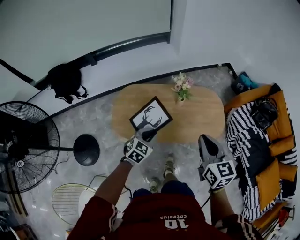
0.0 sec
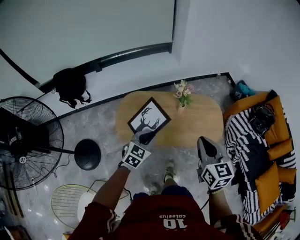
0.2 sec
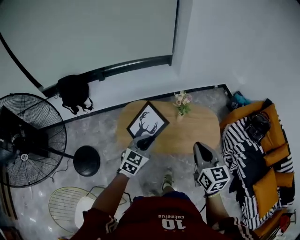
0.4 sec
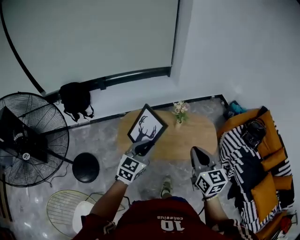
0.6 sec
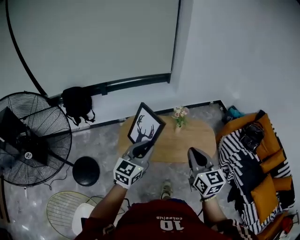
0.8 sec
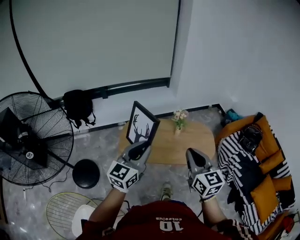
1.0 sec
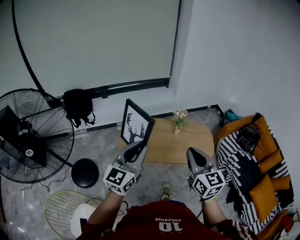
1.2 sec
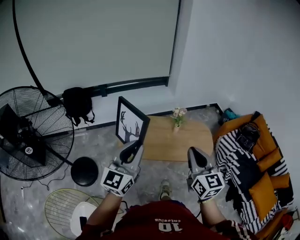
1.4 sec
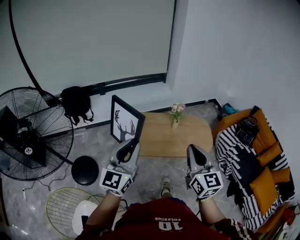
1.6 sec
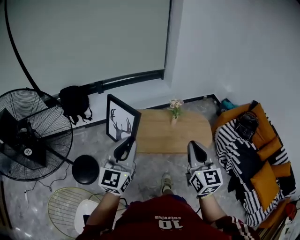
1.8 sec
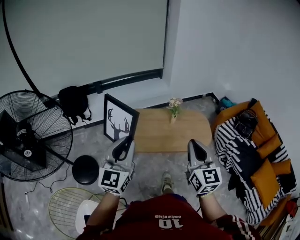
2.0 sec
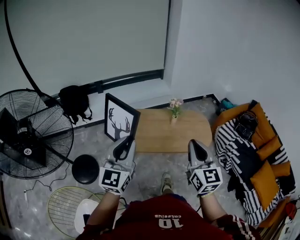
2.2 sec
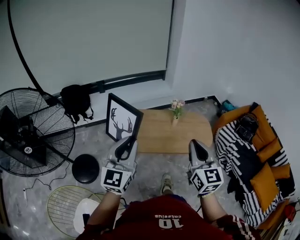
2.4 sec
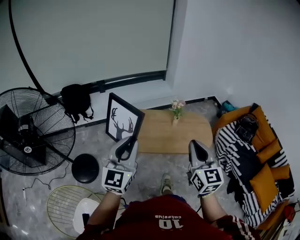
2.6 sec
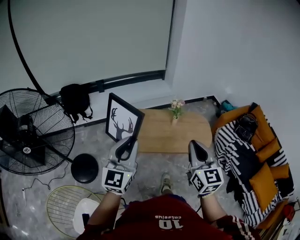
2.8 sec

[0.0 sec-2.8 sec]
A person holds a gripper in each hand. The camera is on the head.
0.0 sec to 1.4 sec: The left gripper goes about 40 cm upward and backward, and points its fingers about 50 degrees further upward. The right gripper moves backward, upward and to the left, about 25 cm.
1.4 sec to 2.8 sec: The grippers stay close to where they were, moving slightly.

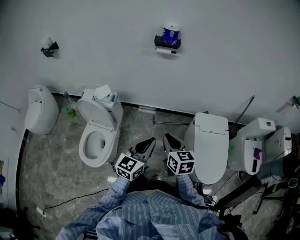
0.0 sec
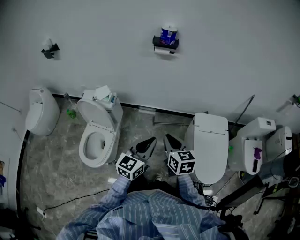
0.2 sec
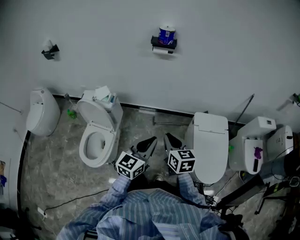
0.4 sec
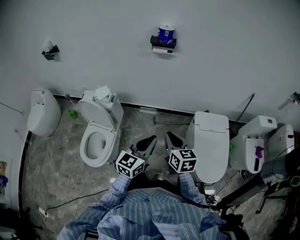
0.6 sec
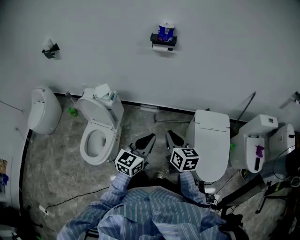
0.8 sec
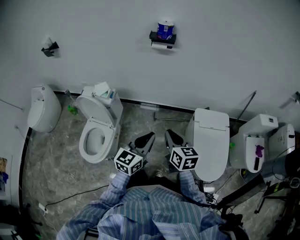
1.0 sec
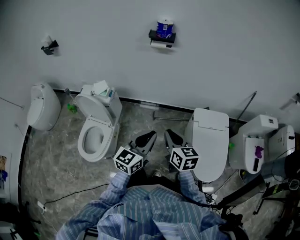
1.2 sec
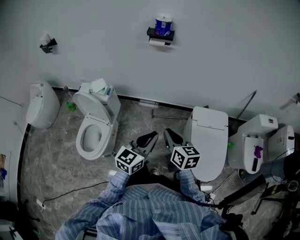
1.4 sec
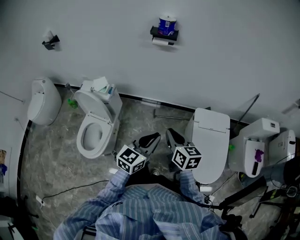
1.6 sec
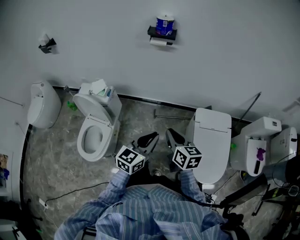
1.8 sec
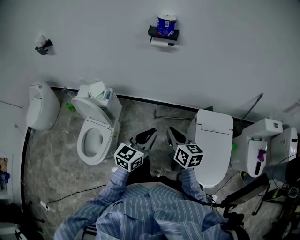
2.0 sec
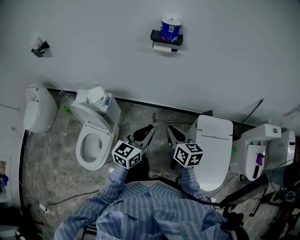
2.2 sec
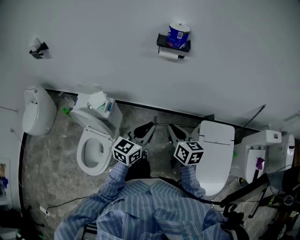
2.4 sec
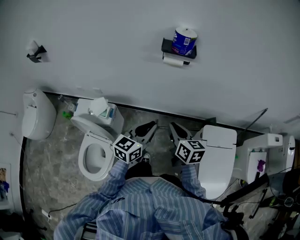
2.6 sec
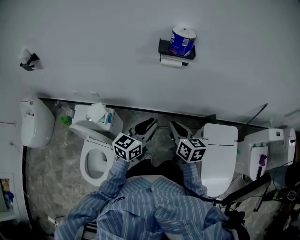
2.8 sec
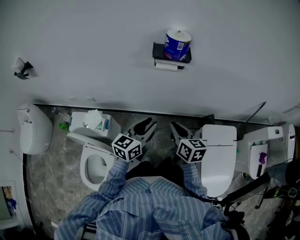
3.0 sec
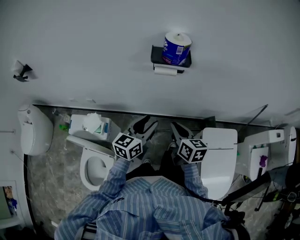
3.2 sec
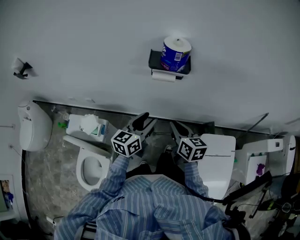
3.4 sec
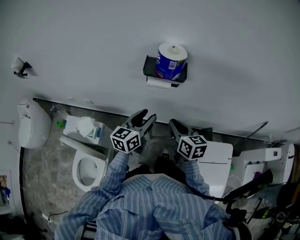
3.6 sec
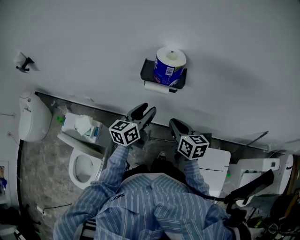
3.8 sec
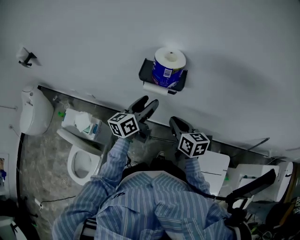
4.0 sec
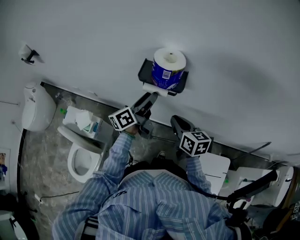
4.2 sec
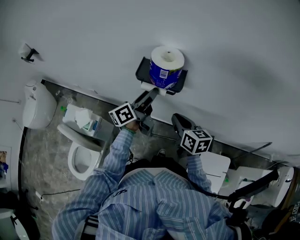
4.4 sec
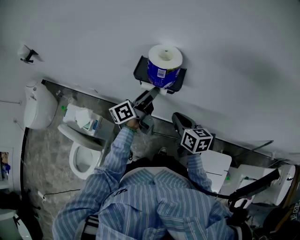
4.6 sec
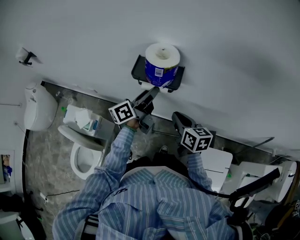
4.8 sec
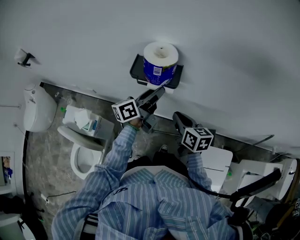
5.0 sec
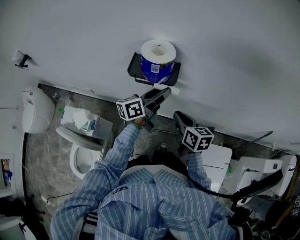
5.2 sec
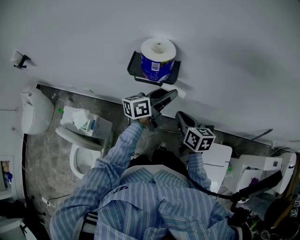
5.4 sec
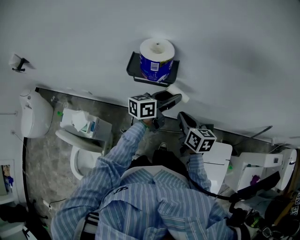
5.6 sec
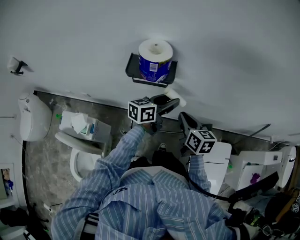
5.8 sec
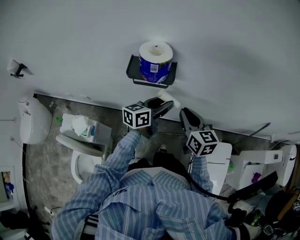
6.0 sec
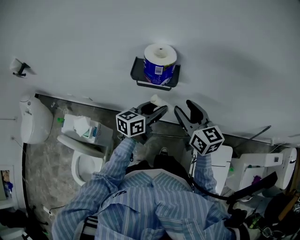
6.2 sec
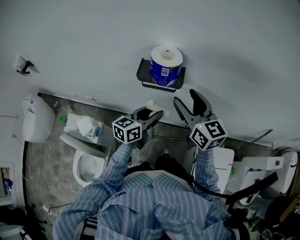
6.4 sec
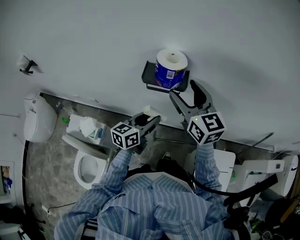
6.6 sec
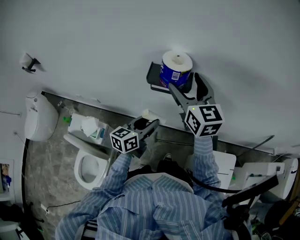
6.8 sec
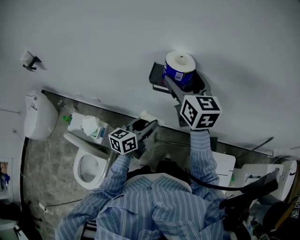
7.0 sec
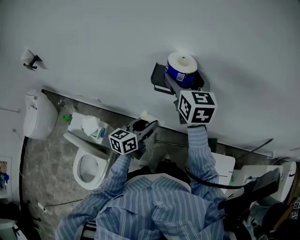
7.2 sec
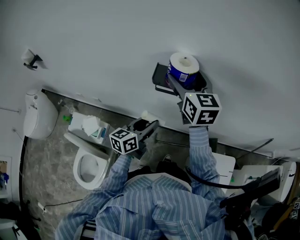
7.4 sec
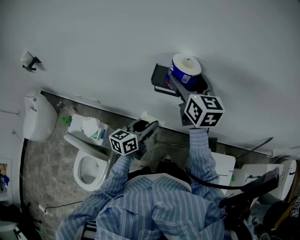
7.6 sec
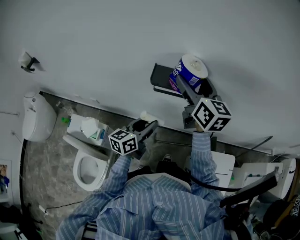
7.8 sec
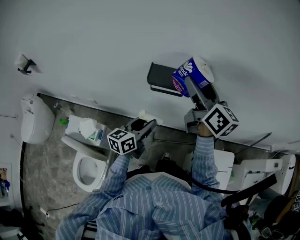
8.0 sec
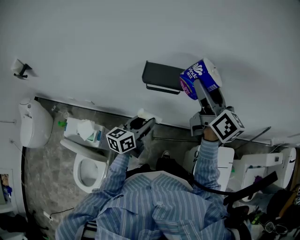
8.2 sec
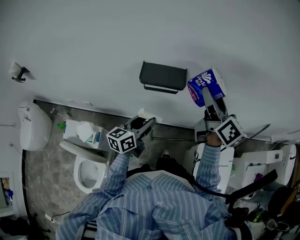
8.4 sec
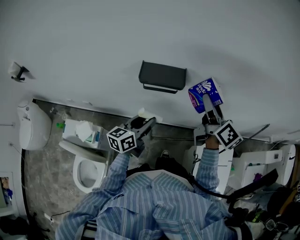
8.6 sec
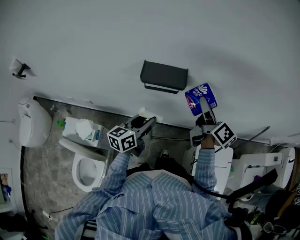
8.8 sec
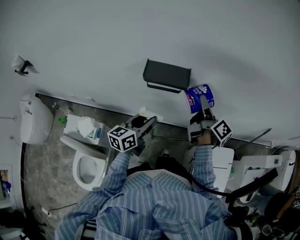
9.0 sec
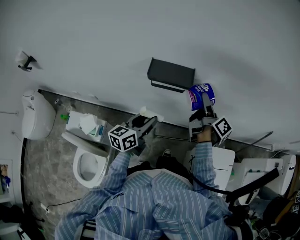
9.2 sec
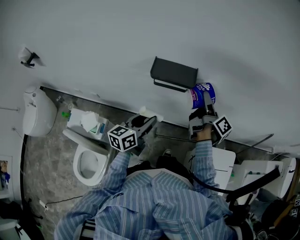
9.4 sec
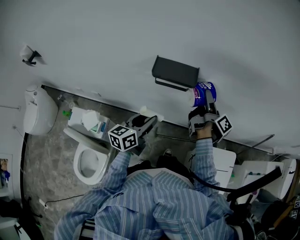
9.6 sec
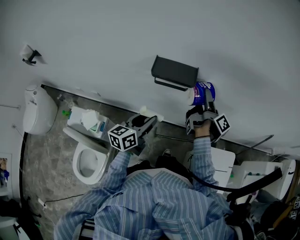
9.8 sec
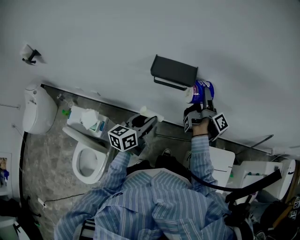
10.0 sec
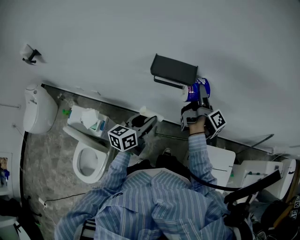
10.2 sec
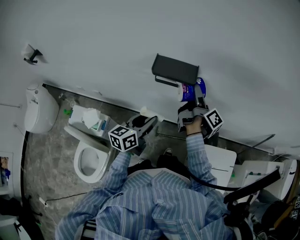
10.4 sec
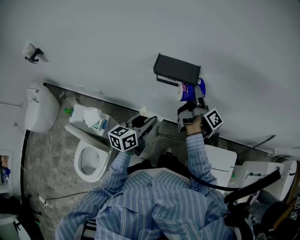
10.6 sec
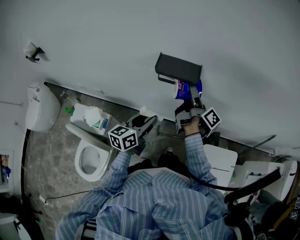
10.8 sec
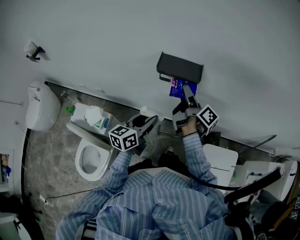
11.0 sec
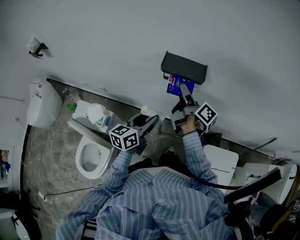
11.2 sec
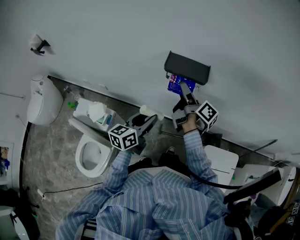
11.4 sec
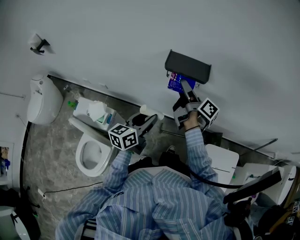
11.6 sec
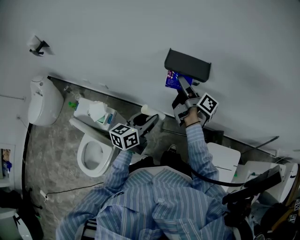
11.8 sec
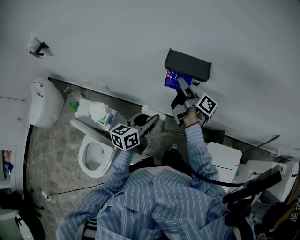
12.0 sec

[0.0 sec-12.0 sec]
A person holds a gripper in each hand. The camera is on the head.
0.0 sec to 1.6 sec: Both grippers move to the right, about 10 cm.
1.6 sec to 3.0 sec: The left gripper moves forward and to the left, some 35 cm, and opens; the right gripper travels forward by roughly 30 cm.
3.0 sec to 4.4 sec: The right gripper heads forward and to the right, covering roughly 20 cm. Meanwhile the left gripper shifts some 25 cm forward, swivels about 40 degrees, and opens.
4.4 sec to 6.0 sec: The left gripper heads to the right, covering approximately 10 cm, and rotates roughly 40 degrees; the right gripper shifts by roughly 5 cm.
6.0 sec to 7.6 sec: The left gripper shifts approximately 15 cm to the left and backward, while the right gripper travels upward, to the left and forward by roughly 25 cm, and opens its fingers.
7.6 sec to 9.0 sec: The right gripper travels to the right and downward by about 20 cm, and rolls clockwise, seen from behind, by approximately 60 degrees.
9.0 sec to 10.4 sec: The right gripper is displaced to the left by about 5 cm.
10.4 sec to 12.0 sec: The right gripper is displaced to the left by roughly 10 cm, and swivels roughly 20 degrees.

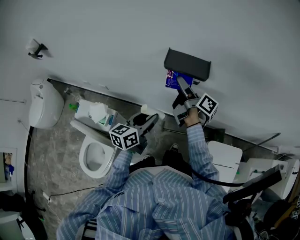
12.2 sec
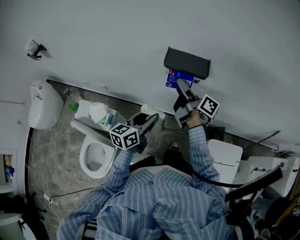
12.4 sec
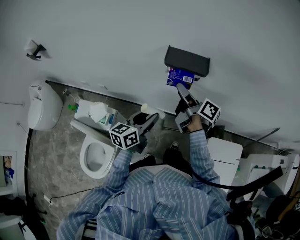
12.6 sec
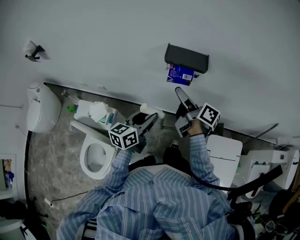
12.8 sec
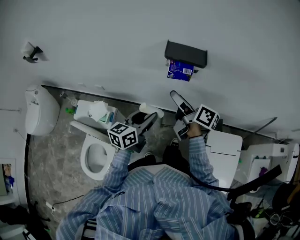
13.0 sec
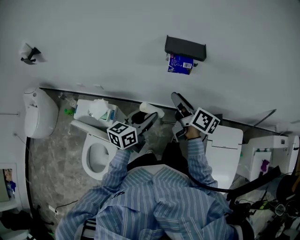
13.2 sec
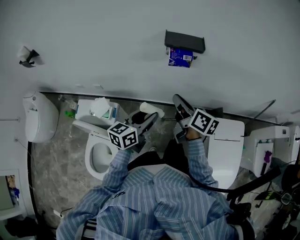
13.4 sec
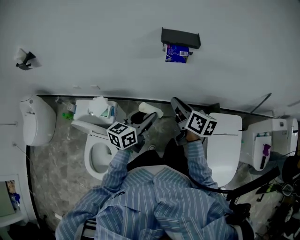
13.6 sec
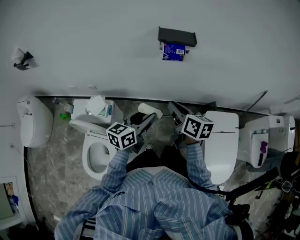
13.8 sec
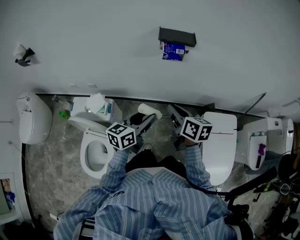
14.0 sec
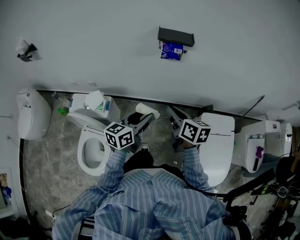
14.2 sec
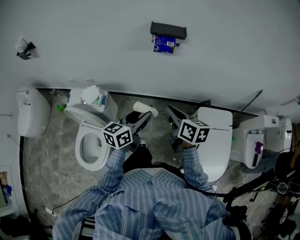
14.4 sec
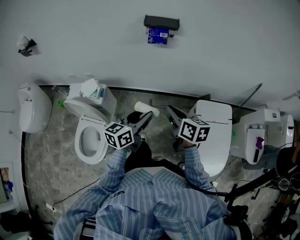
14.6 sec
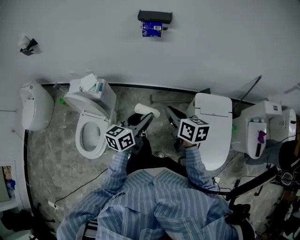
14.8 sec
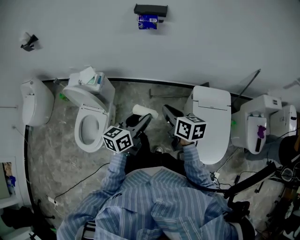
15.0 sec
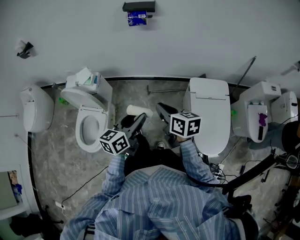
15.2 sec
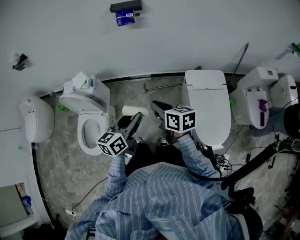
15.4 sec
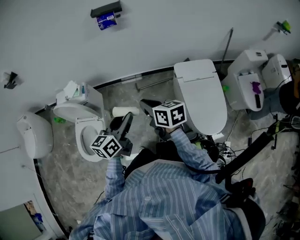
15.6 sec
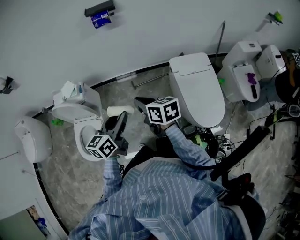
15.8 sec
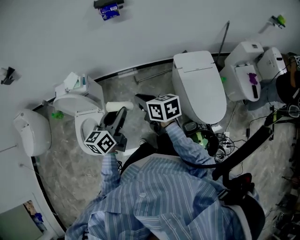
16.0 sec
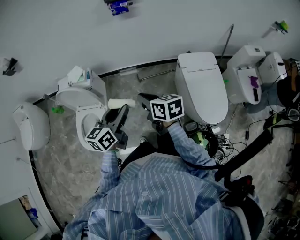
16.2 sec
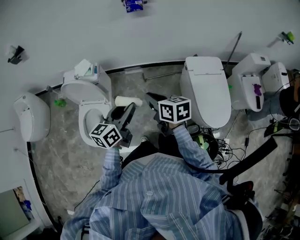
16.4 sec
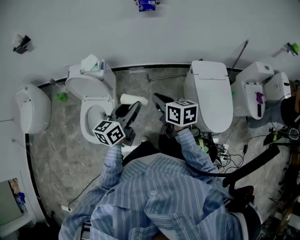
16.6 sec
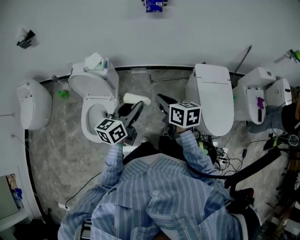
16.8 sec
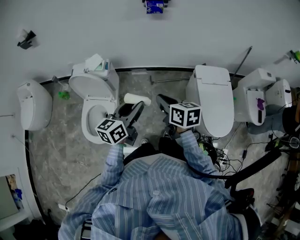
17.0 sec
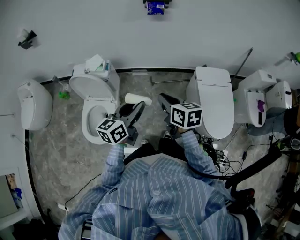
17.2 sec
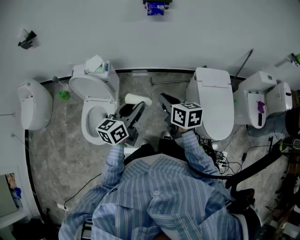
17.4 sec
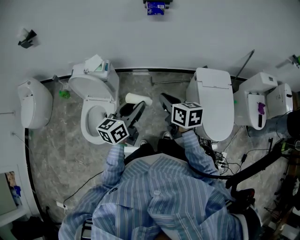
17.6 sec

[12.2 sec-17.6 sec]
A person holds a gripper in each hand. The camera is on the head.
12.2 sec to 13.6 sec: The right gripper heads backward, covering roughly 20 cm, turns by some 40 degrees, and closes up; the left gripper shifts approximately 15 cm backward.
13.6 sec to 15.0 sec: The two grippers go approximately 25 cm backward and to the right.
15.0 sec to 16.2 sec: The two grippers go approximately 15 cm to the left and backward.
16.2 sec to 17.6 sec: There are only small adjustments of the grippers.

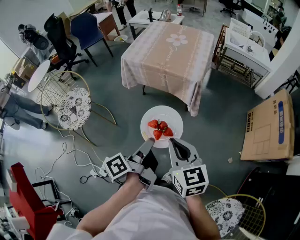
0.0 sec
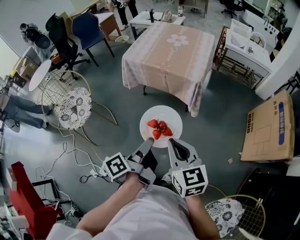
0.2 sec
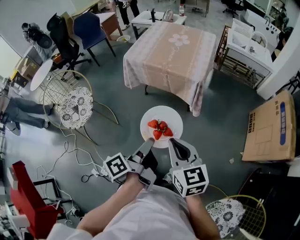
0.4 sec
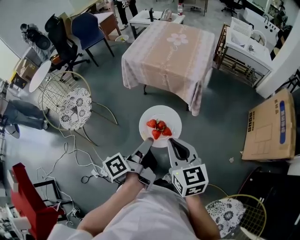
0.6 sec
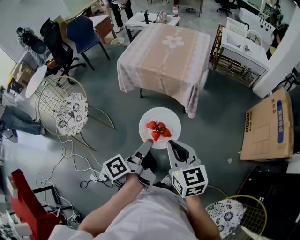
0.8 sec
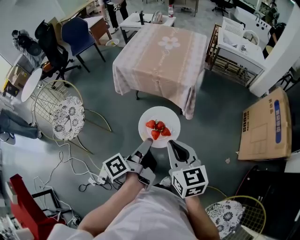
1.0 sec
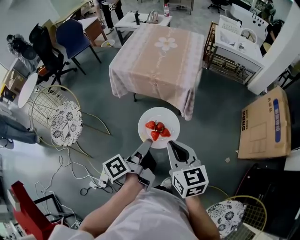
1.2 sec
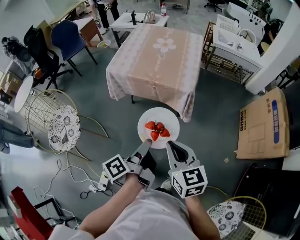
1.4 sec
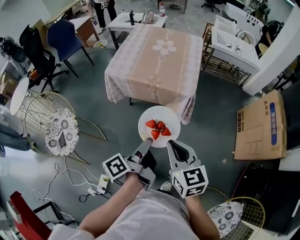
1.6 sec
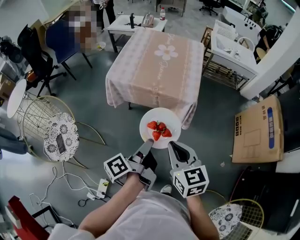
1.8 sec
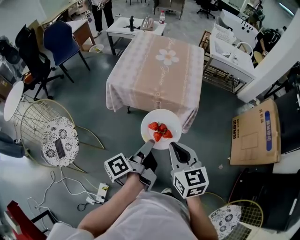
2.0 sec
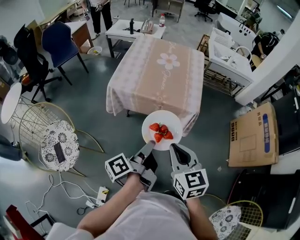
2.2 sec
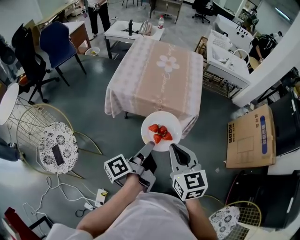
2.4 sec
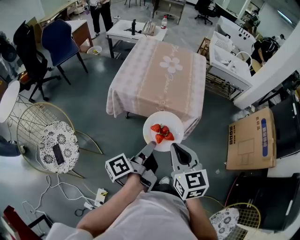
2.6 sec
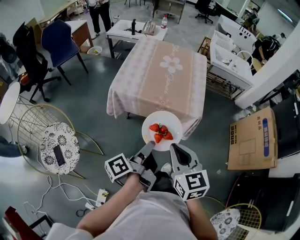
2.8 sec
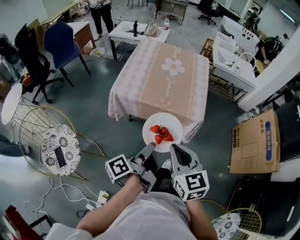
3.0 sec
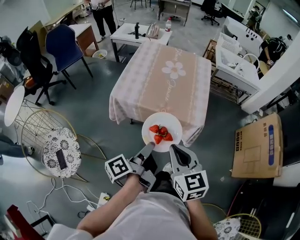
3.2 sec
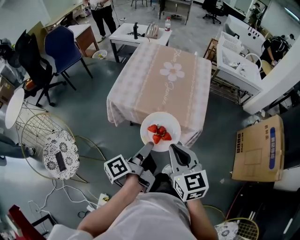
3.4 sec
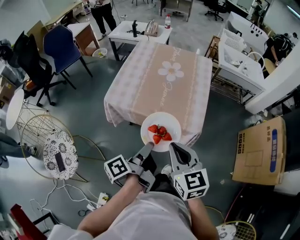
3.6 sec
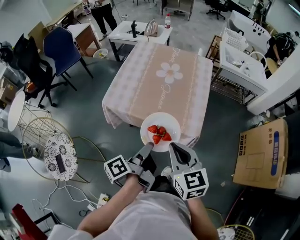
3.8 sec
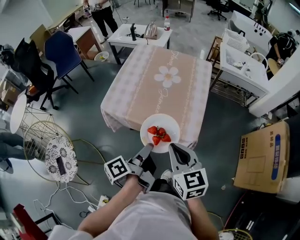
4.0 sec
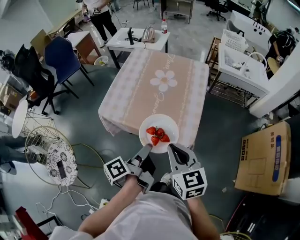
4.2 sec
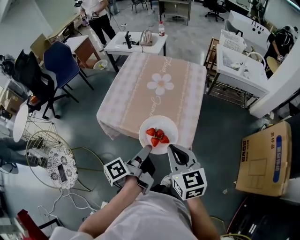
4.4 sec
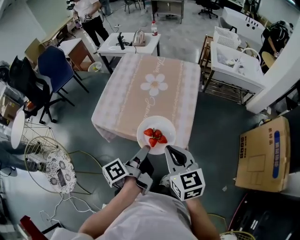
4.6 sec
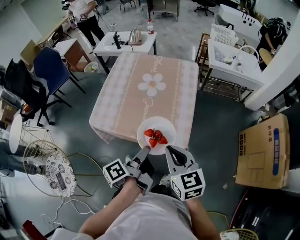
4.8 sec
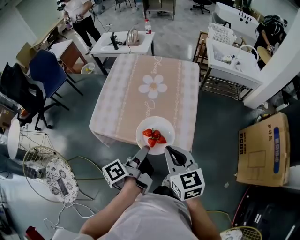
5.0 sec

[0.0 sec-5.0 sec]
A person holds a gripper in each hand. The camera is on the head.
0.0 sec to 1.6 sec: The right gripper shifts by about 15 cm.
1.6 sec to 3.4 sec: The right gripper ends up roughly 20 cm from where it was.
3.4 sec to 5.0 sec: The right gripper changes place by roughly 20 cm.
